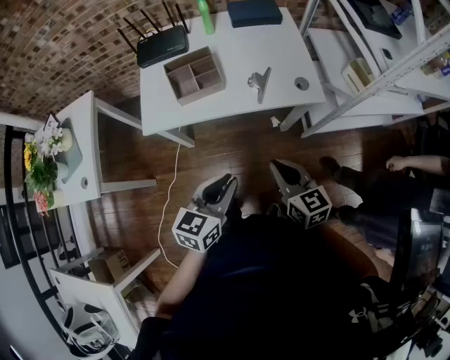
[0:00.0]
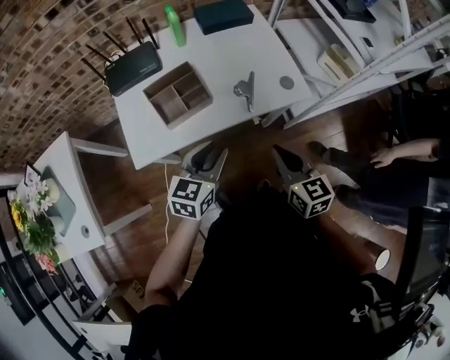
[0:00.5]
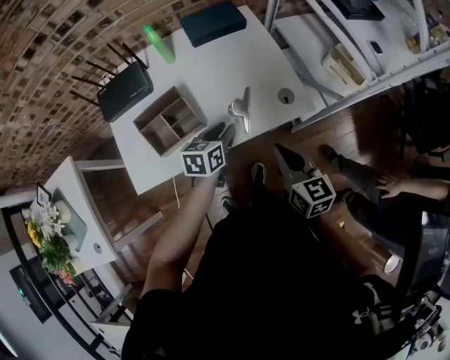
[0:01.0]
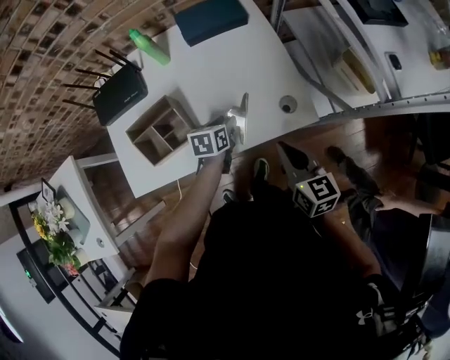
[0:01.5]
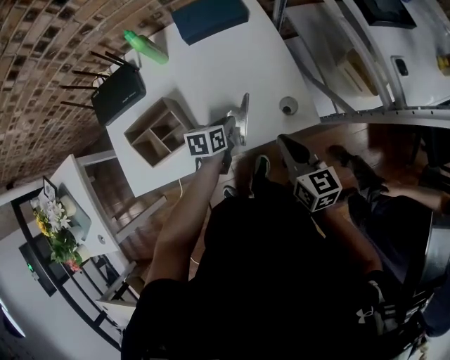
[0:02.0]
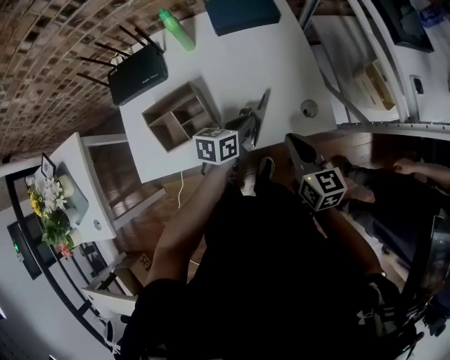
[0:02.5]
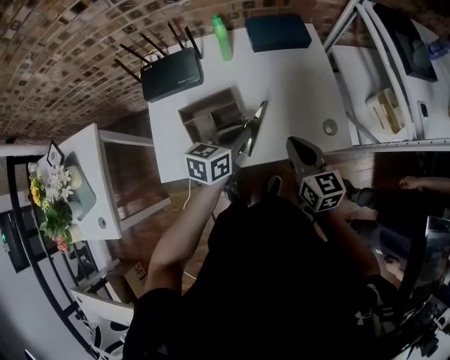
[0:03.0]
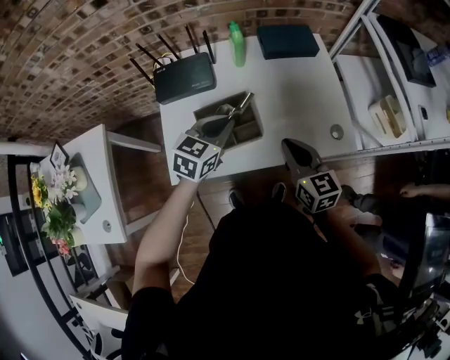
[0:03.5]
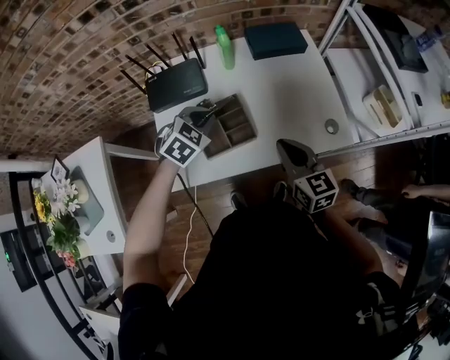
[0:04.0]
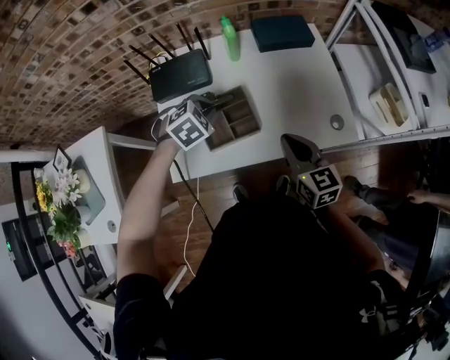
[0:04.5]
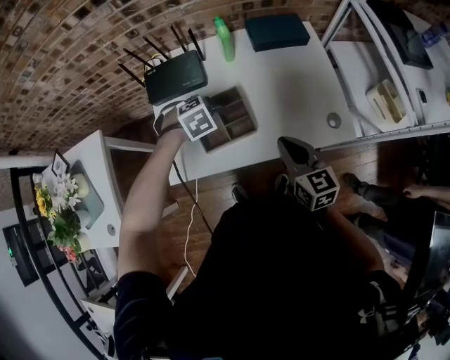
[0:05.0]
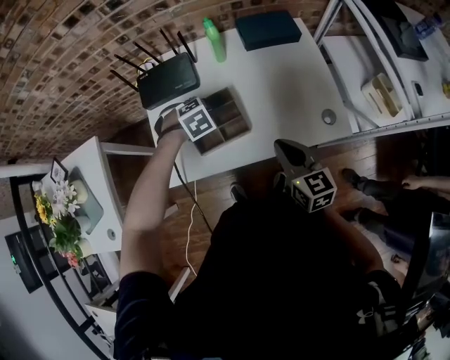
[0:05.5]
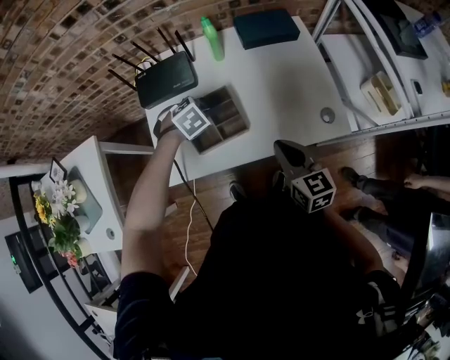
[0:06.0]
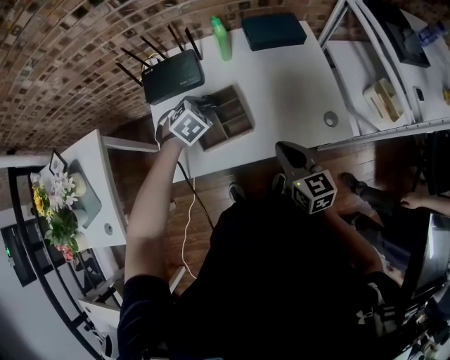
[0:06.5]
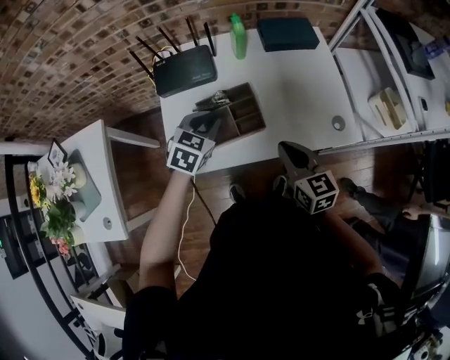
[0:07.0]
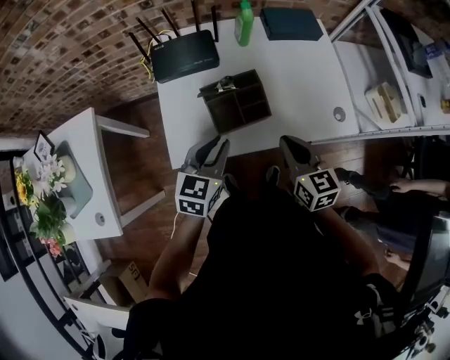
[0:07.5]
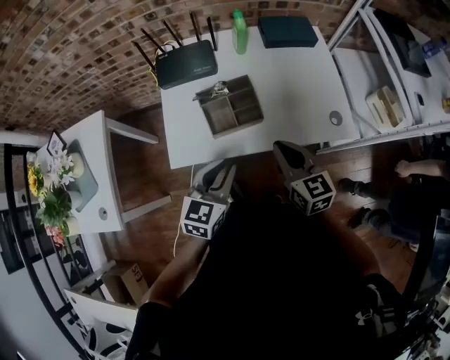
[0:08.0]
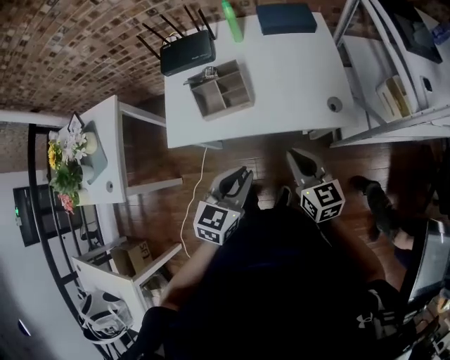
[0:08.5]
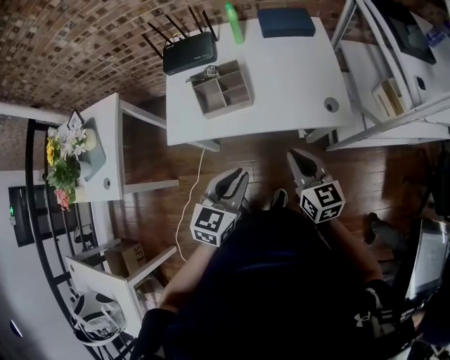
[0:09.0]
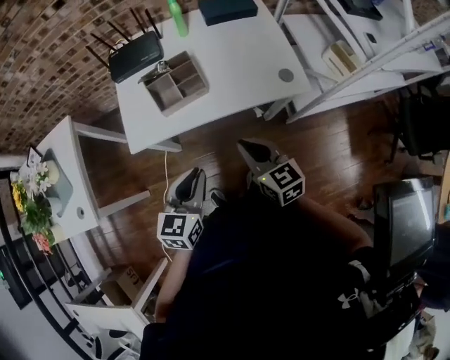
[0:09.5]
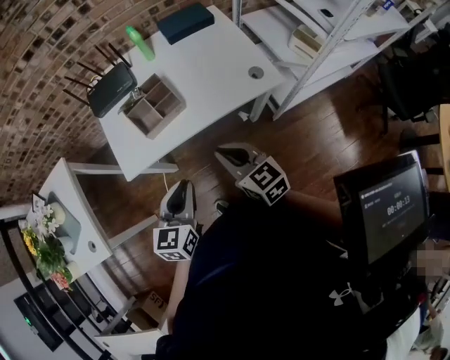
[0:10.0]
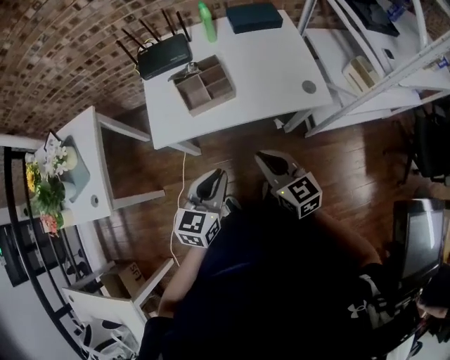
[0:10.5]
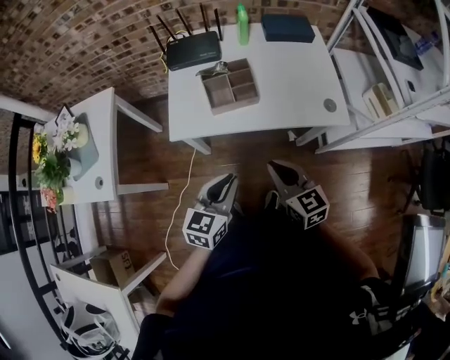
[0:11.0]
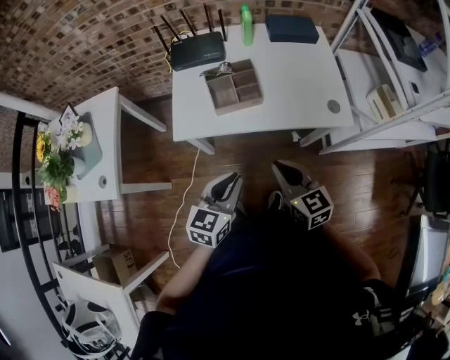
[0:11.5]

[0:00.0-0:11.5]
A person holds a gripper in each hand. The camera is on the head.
0:00.0 to 0:02.0: The left gripper is displaced forward and downward by roughly 40 cm, turns by approximately 30 degrees, and opens, then closes once more. Meanwhile the right gripper travels forward by about 25 cm.
0:02.0 to 0:04.0: The right gripper is displaced to the left by approximately 20 cm. The left gripper heads to the left and upward, covering approximately 30 cm, and rolls clockwise, seen from behind, by some 60 degrees.
0:04.0 to 0:06.0: The left gripper goes some 10 cm downward, and changes its angle by some 20 degrees.
0:06.0 to 0:07.5: The left gripper shifts about 20 cm backward and upward, and angles its fingers upward, by roughly 50 degrees. Meanwhile the right gripper travels to the left by some 5 cm.
0:07.5 to 0:09.5: The left gripper is displaced backward and to the right by some 20 cm, while the right gripper shifts some 15 cm backward.
0:09.5 to 0:11.5: There are only small adjustments of the grippers.

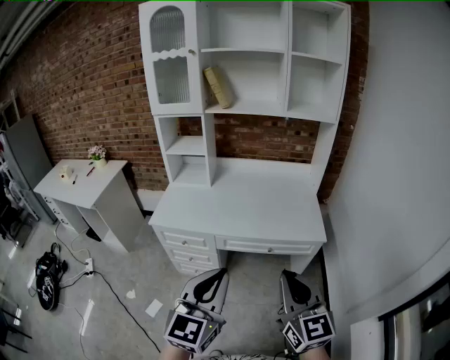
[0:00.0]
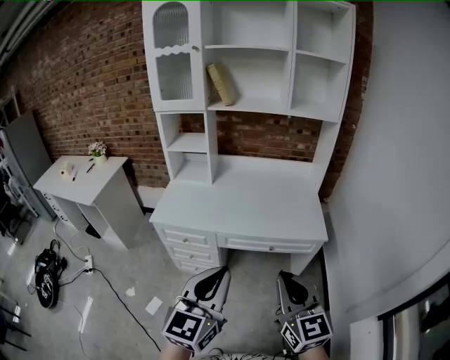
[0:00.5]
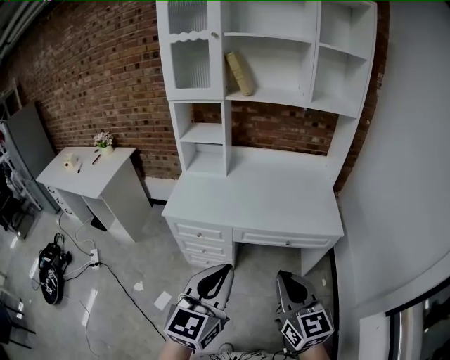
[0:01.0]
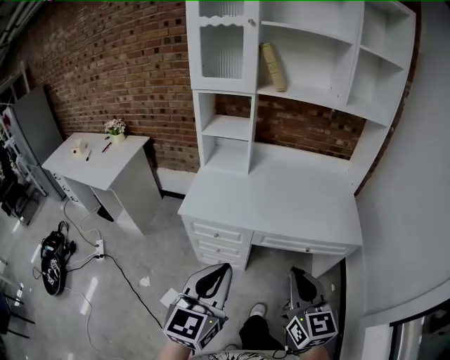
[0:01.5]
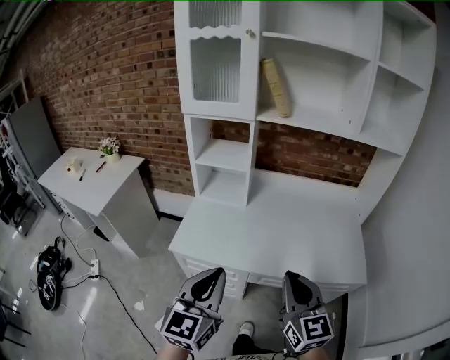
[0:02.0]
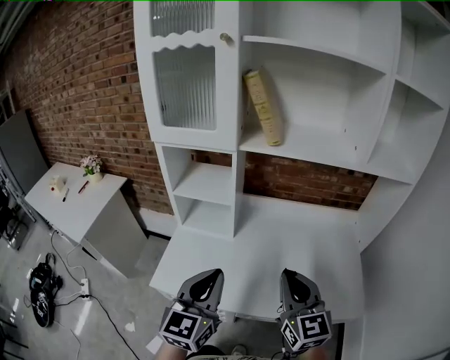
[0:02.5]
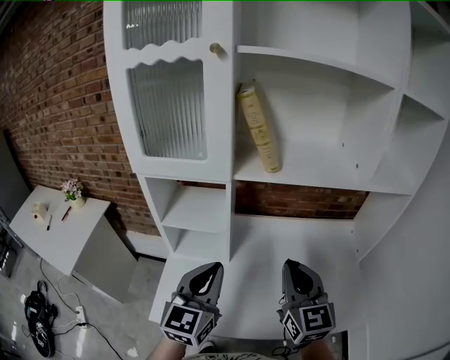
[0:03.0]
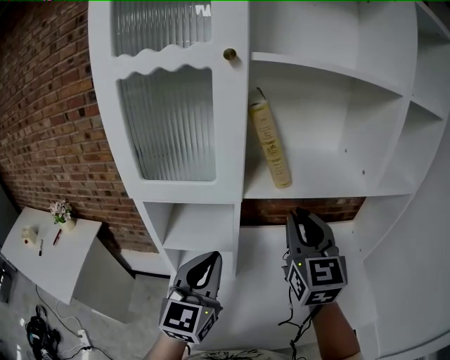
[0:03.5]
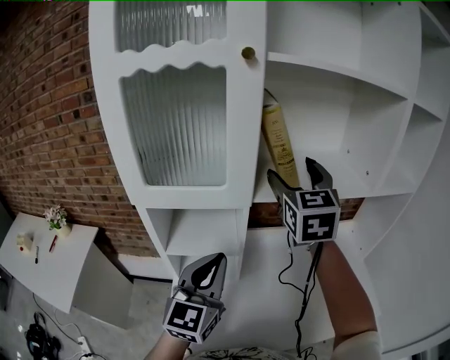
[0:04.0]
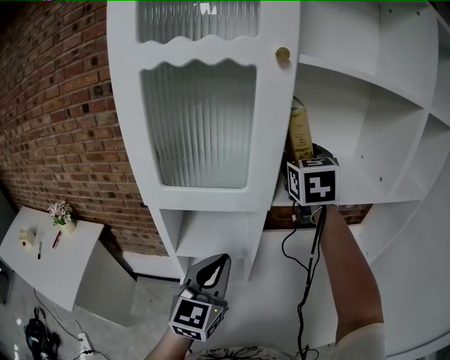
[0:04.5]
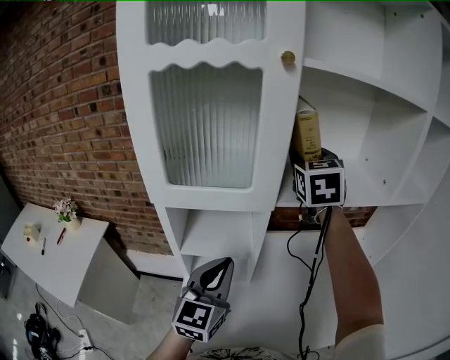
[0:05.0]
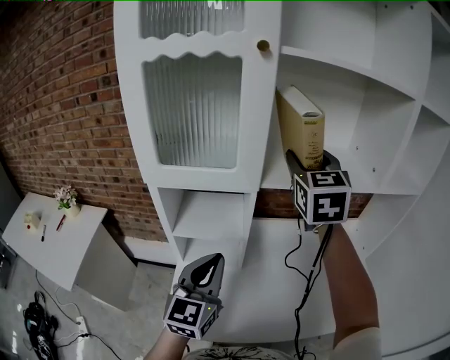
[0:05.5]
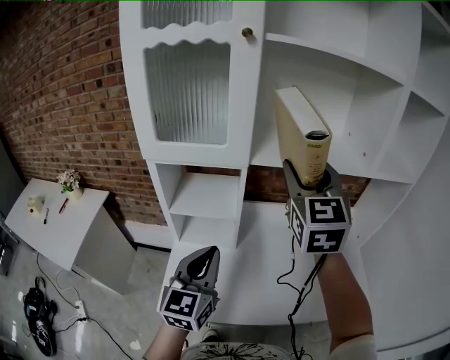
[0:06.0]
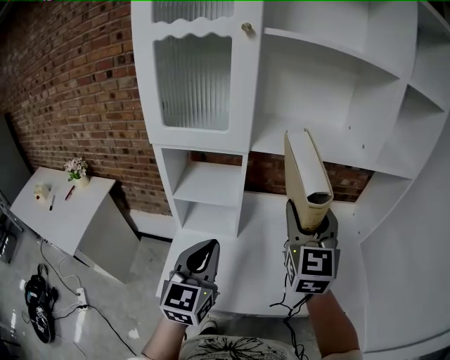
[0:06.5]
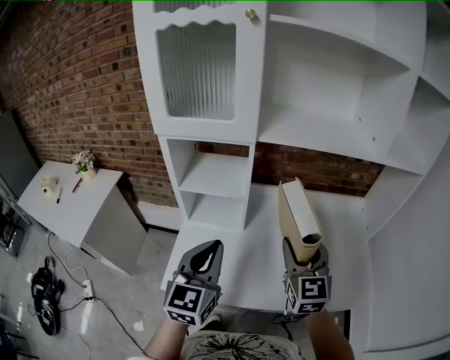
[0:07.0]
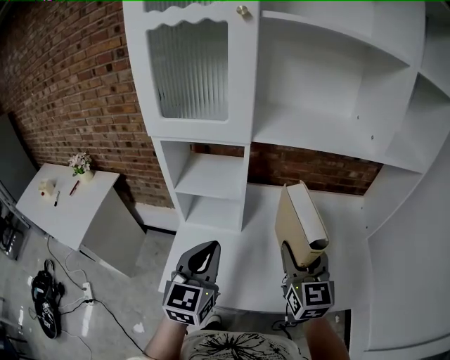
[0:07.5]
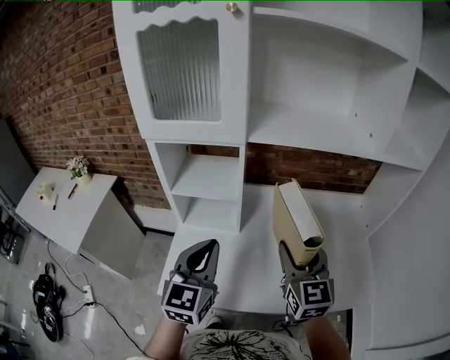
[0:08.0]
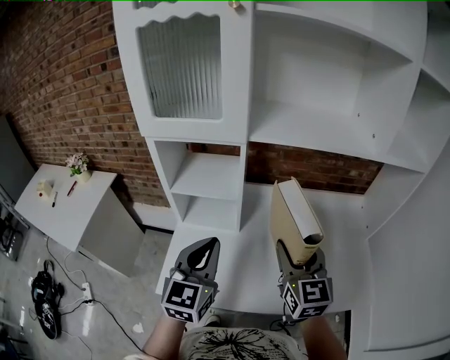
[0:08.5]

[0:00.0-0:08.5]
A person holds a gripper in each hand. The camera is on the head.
0:00.0 to 0:02.0: The two grippers go approximately 30 cm forward and to the left.
0:02.0 to 0:04.0: The two grippers travel together, forward, roughly 50 cm. The right gripper shifts about 25 cm upward, changes its angle by about 30 degrees, and opens.
0:04.0 to 0:06.5: The right gripper is displaced backward and downward by roughly 20 cm, and closes up; the left gripper moves backward, about 10 cm.
0:06.5 to 0:08.5: The right gripper moves downward, approximately 15 cm.

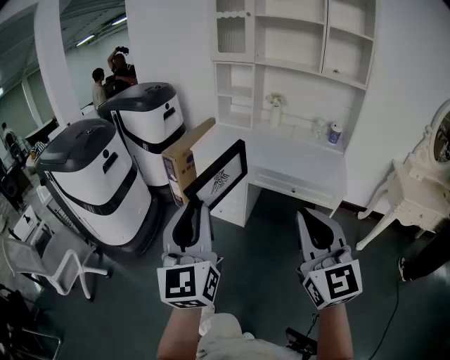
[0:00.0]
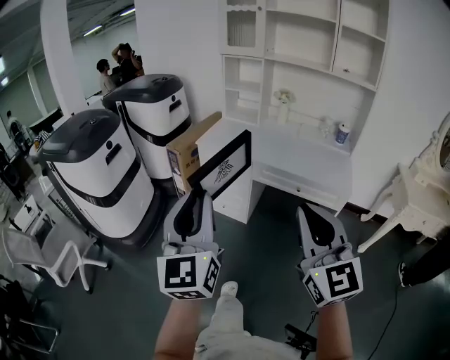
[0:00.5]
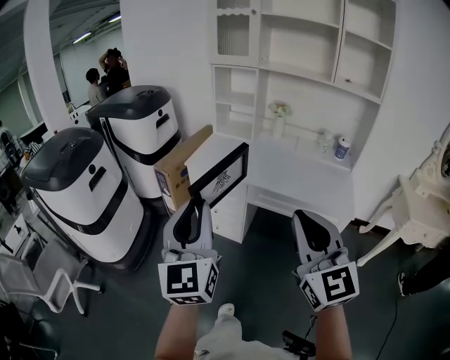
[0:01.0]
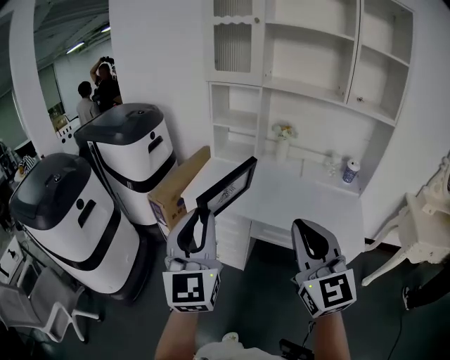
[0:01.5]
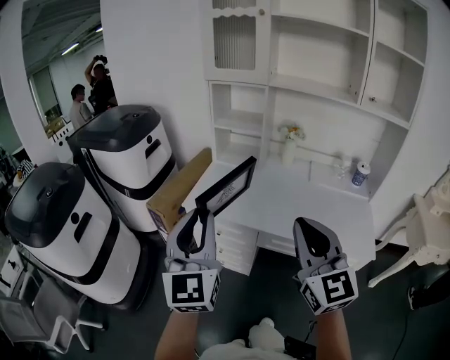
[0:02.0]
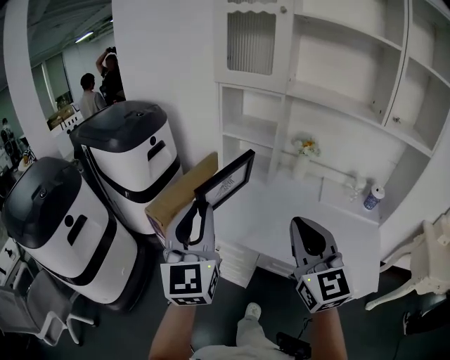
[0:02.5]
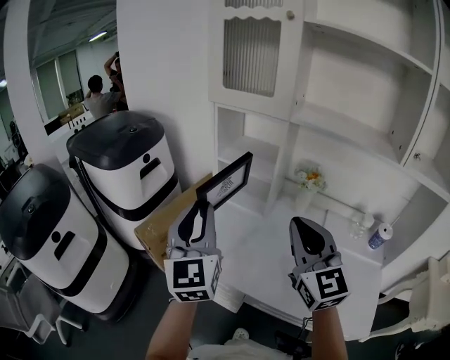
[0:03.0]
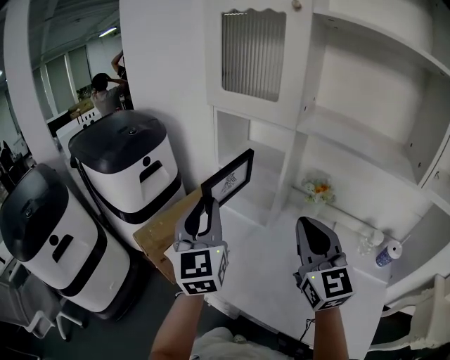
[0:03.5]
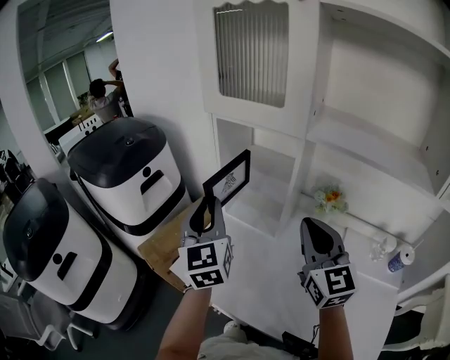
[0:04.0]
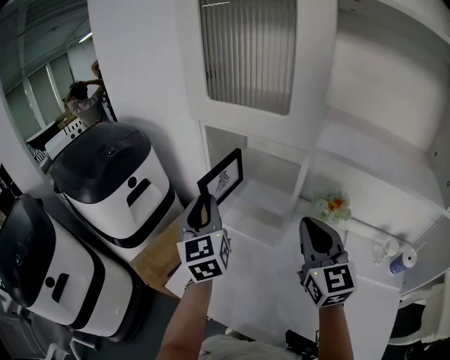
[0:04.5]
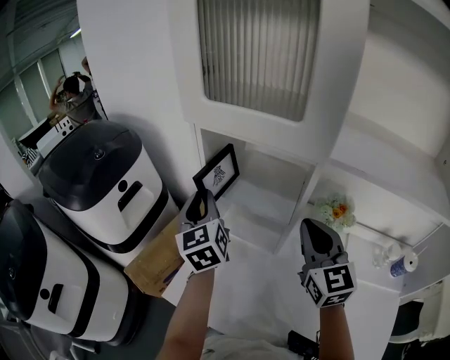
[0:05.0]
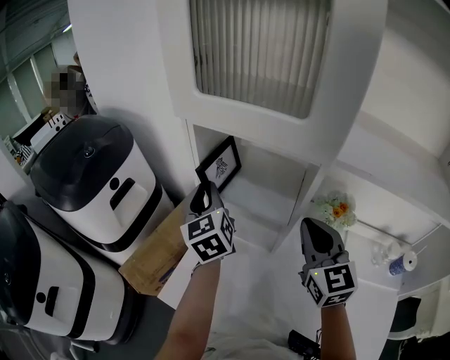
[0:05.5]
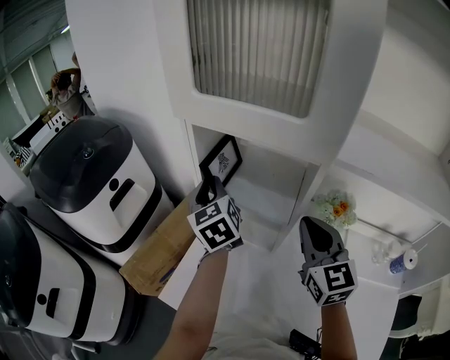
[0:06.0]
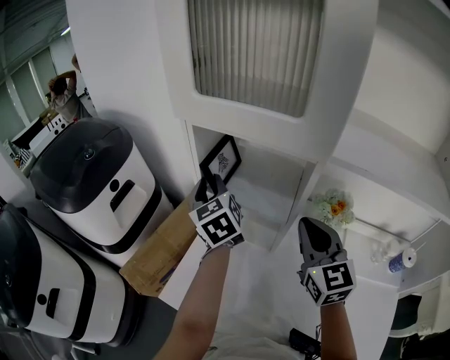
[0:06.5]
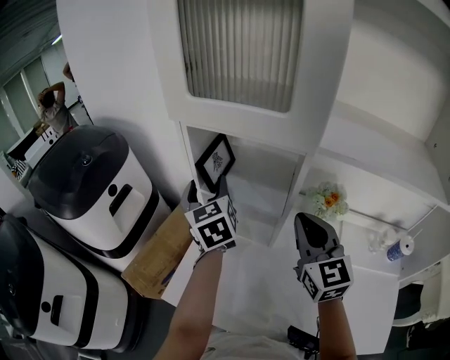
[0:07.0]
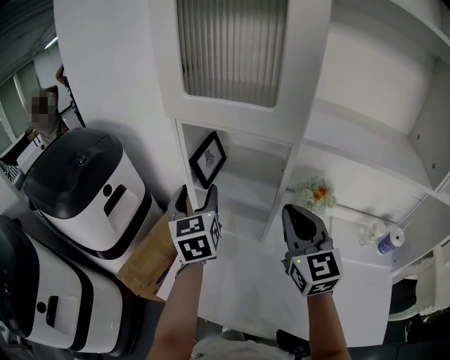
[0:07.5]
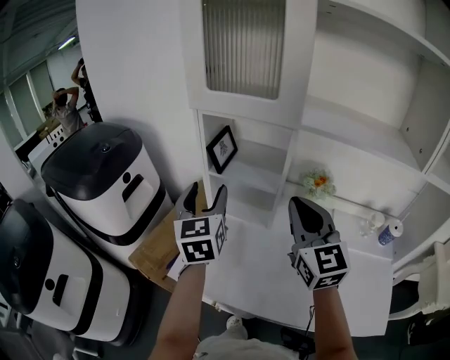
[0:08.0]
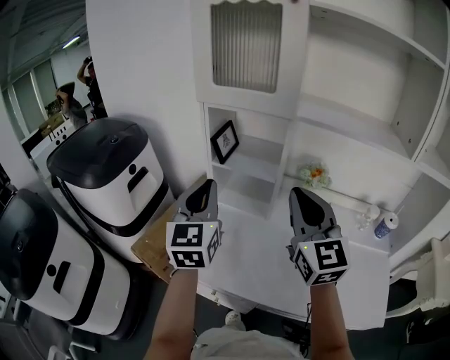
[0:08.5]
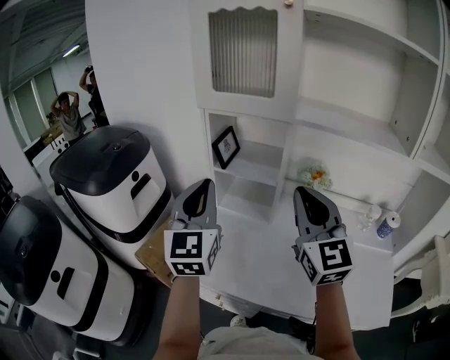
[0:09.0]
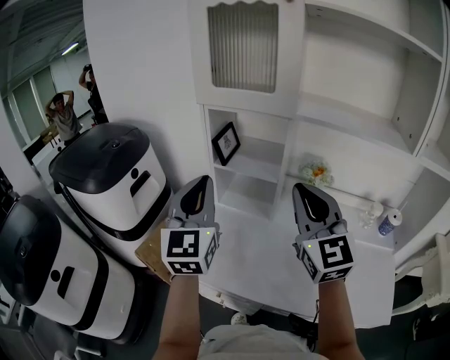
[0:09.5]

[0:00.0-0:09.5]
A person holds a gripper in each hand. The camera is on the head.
0:00.0 to 0:02.0: The two grippers travel together, forward, approximately 40 cm.
0:02.0 to 0:04.0: The two grippers travel together, forward, roughly 40 cm. The left gripper swivels approximately 20 degrees.
0:04.0 to 0:05.5: The right gripper heads forward and downward, covering about 15 cm; the left gripper goes some 20 cm forward.
0:05.5 to 0:07.5: The right gripper changes place by roughly 5 cm, while the left gripper goes about 5 cm backward, and opens.
0:07.5 to 0:09.5: Both grippers travel together backward and upward, about 20 cm. The left gripper turns by about 30 degrees, and closes.
